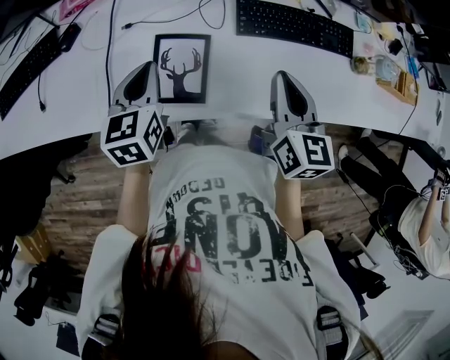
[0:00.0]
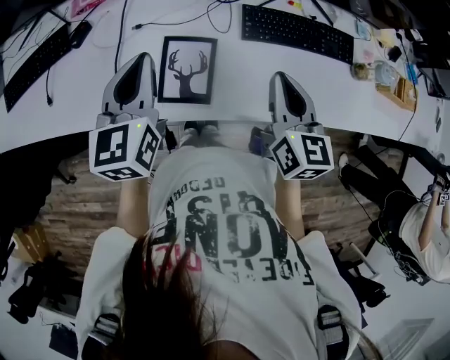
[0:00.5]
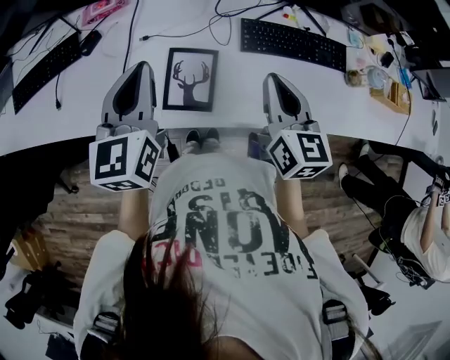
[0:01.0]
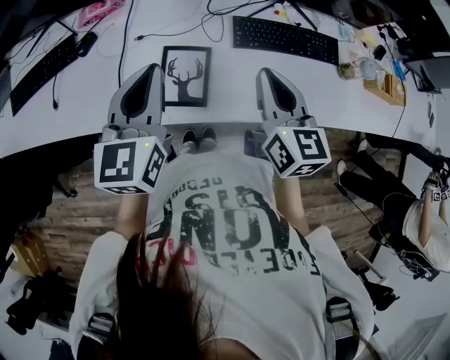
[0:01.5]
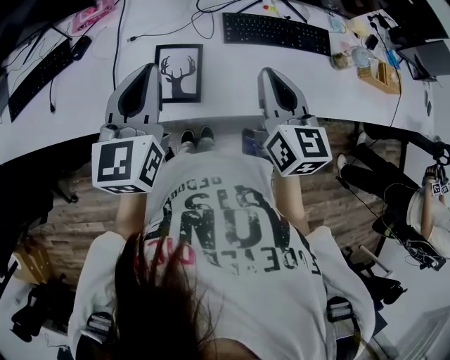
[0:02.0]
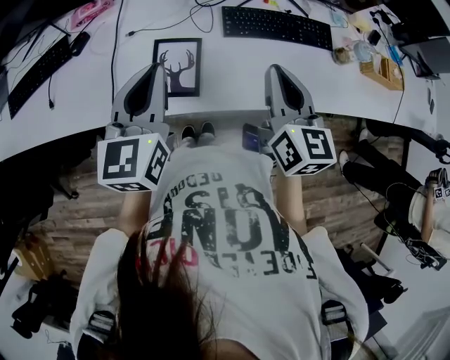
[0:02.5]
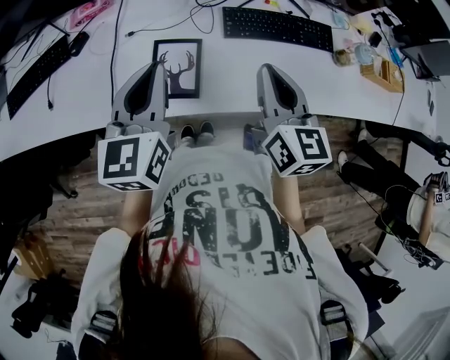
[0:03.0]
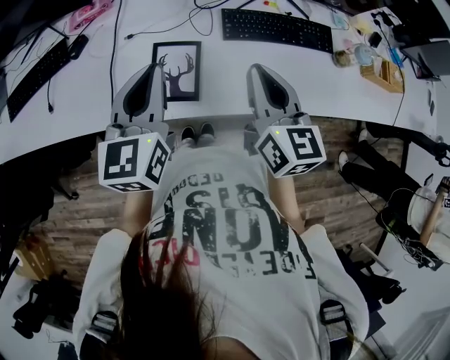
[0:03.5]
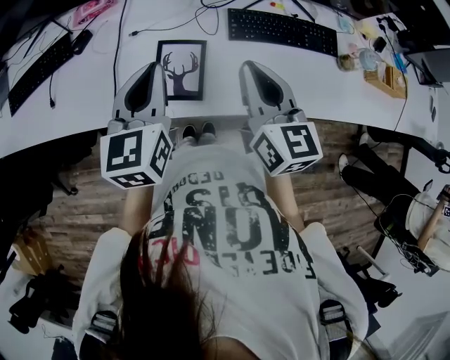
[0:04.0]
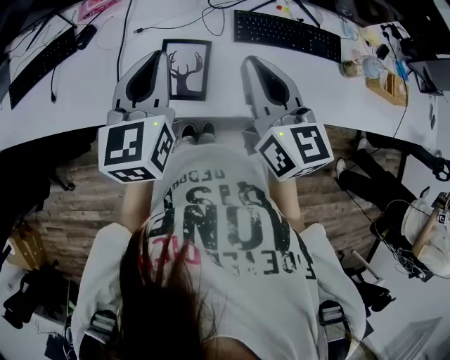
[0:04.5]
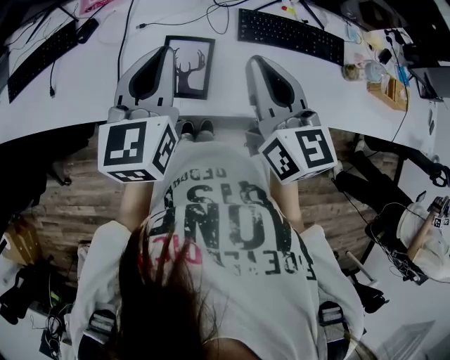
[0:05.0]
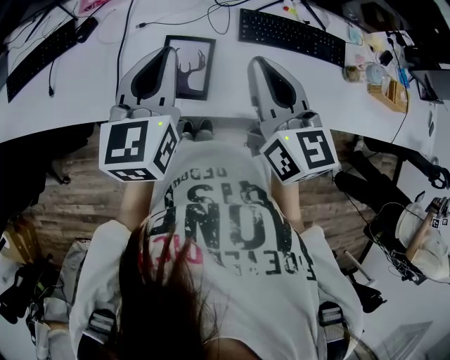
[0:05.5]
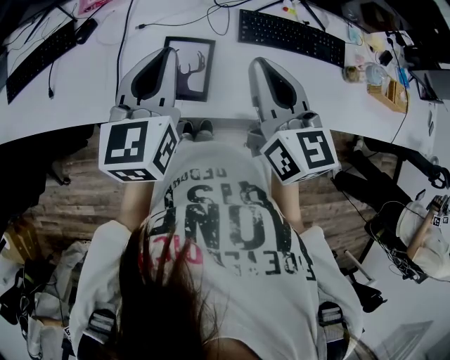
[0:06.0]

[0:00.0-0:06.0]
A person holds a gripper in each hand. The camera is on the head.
0:00.0 to 0:02.0: The left gripper moves upward and backward, about 15 cm, and changes its angle by roughly 20 degrees. Meanwhile the right gripper moves upward, some 5 cm.
0:02.0 to 0:04.0: The grippers move only a little.
0:04.0 to 0:06.0: There are only small adjustments of the grippers.

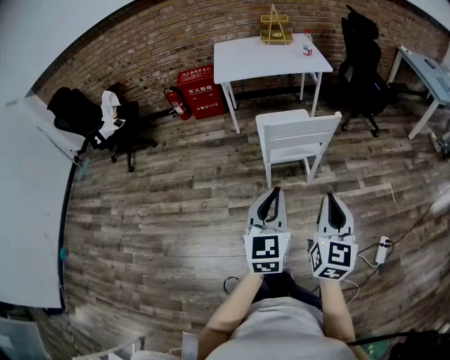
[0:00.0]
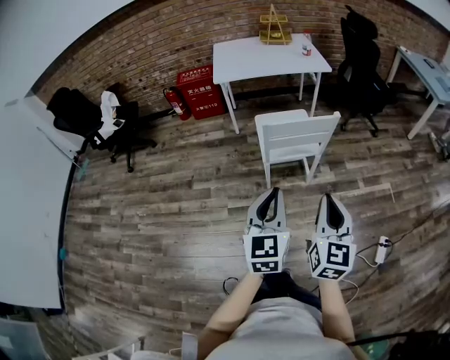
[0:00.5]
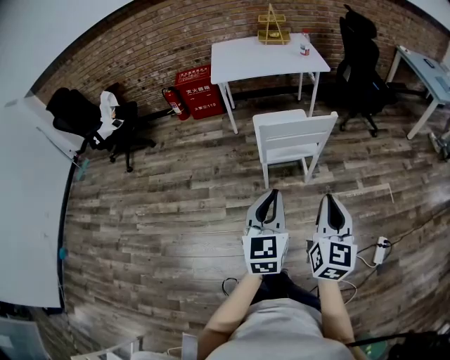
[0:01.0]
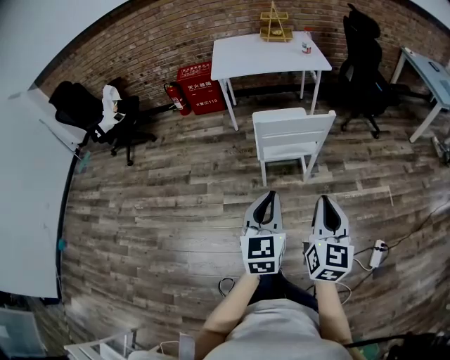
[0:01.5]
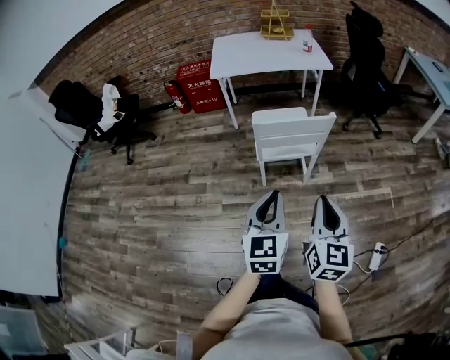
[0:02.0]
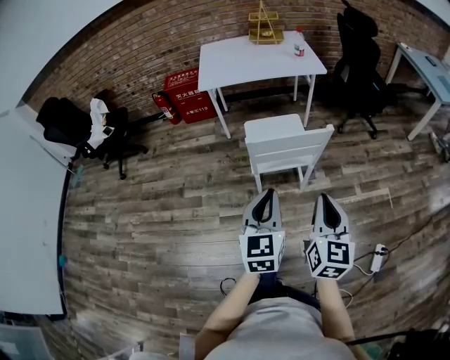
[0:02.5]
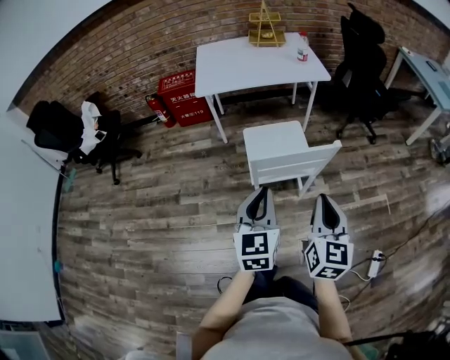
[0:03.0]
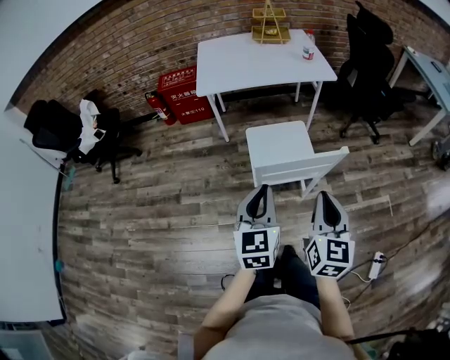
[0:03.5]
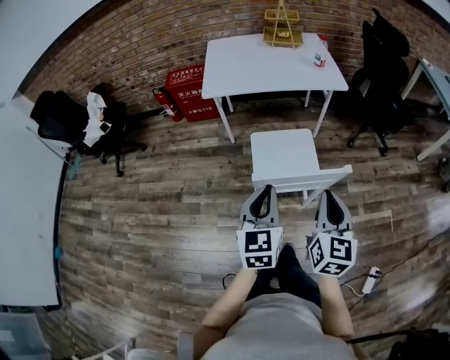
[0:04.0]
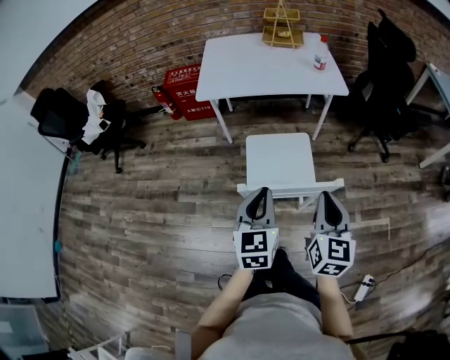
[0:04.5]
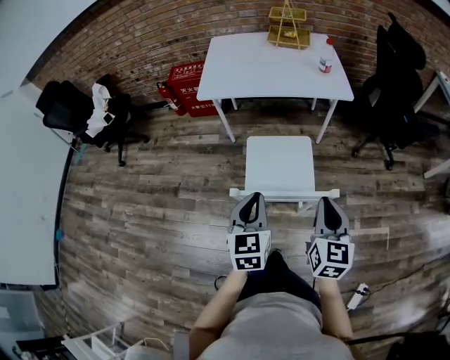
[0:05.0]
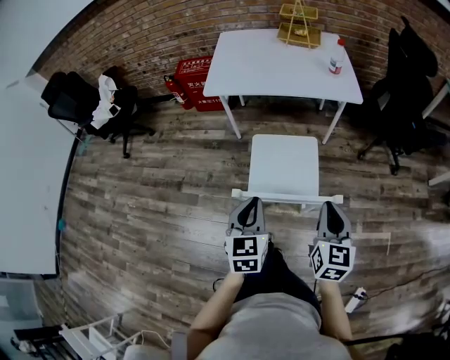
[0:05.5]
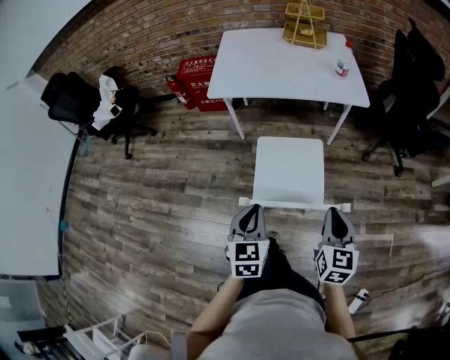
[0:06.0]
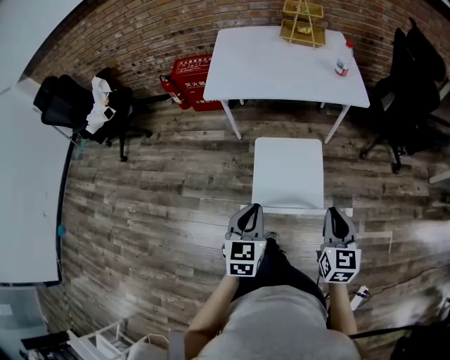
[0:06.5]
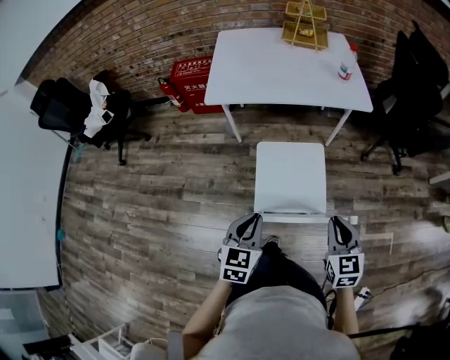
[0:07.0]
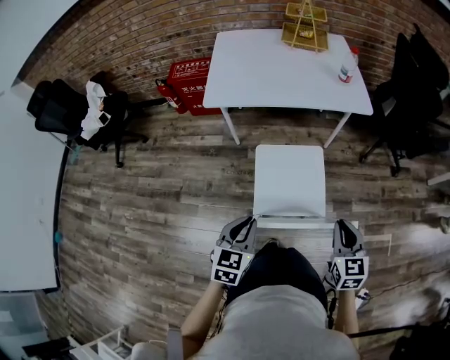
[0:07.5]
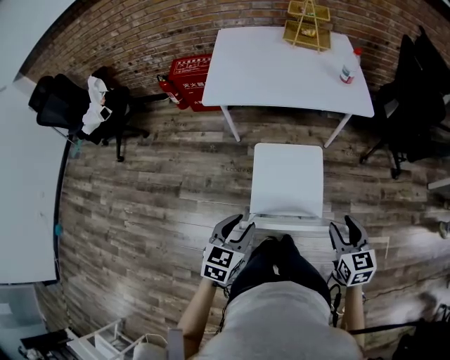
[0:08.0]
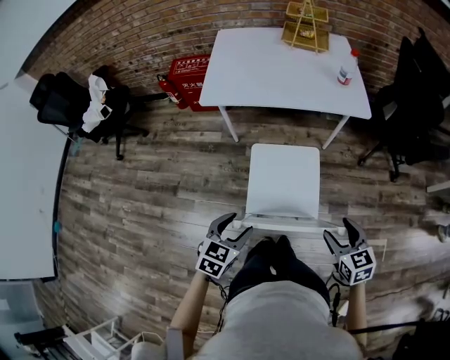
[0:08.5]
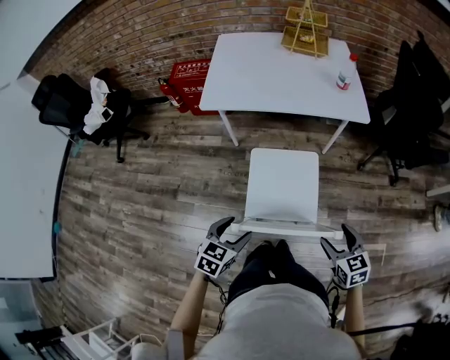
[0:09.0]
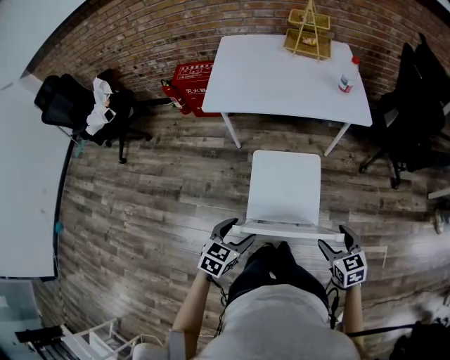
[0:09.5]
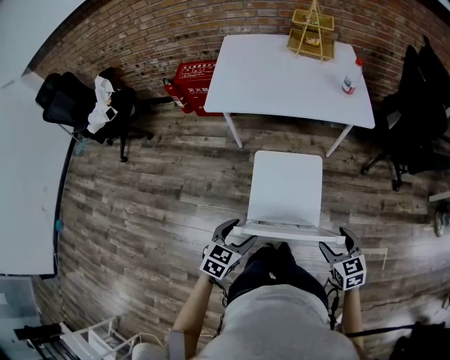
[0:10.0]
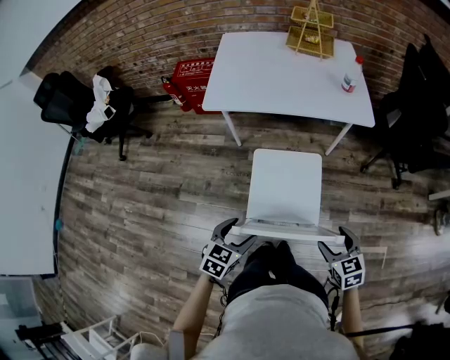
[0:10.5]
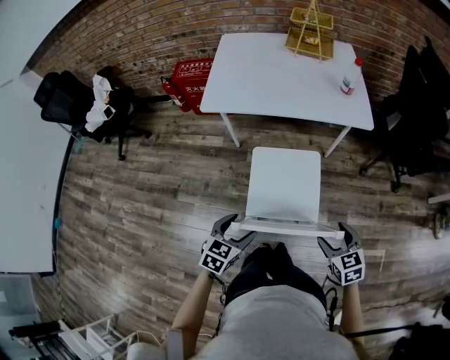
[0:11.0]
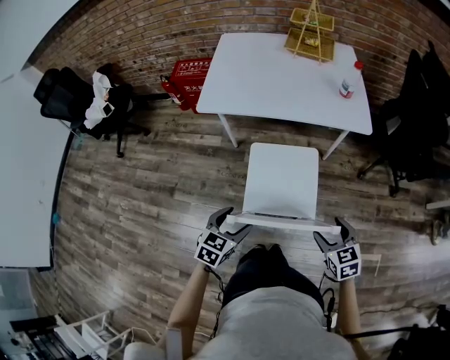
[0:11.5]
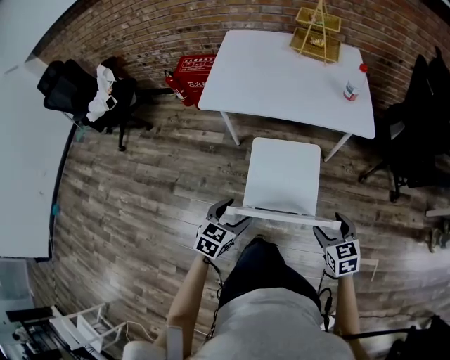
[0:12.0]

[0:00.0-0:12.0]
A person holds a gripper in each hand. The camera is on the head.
0:00.0 to 0:02.0: The right gripper shifts by about 5 cm. Meanwhile the left gripper is displaced to the right by approximately 5 cm.
0:02.0 to 0:04.0: Both grippers move forward, approximately 25 cm.
0:04.0 to 0:06.0: The right gripper travels forward, downward and to the right by some 15 cm; the left gripper moves downward and forward, about 10 cm.
0:06.0 to 0:08.0: The right gripper changes place by roughly 5 cm, and opens its fingers, while the left gripper shifts by some 5 cm, turns by approximately 20 degrees, and opens.
0:08.0 to 0:10.0: The grippers both shift downward by about 5 cm. The left gripper opens; the right gripper opens up.
0:10.0 to 0:12.0: The grippers both shift forward by roughly 10 cm.

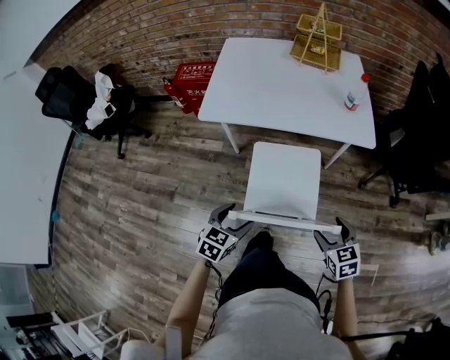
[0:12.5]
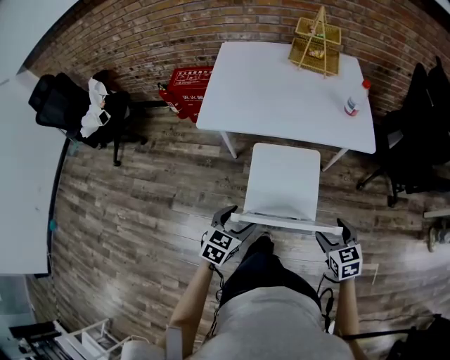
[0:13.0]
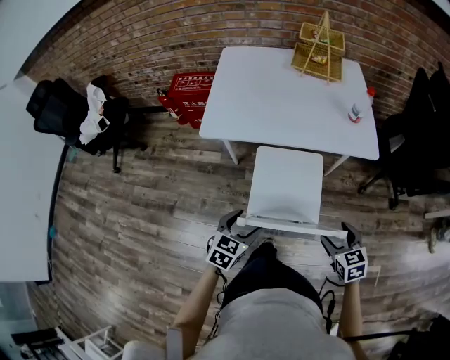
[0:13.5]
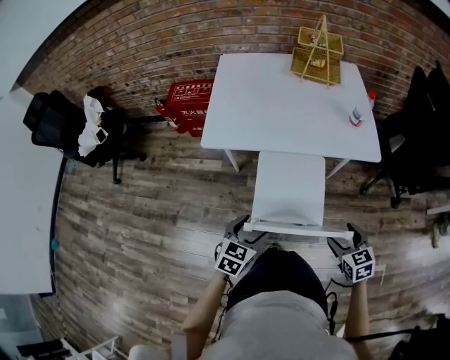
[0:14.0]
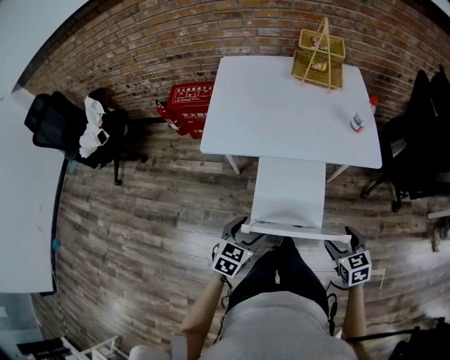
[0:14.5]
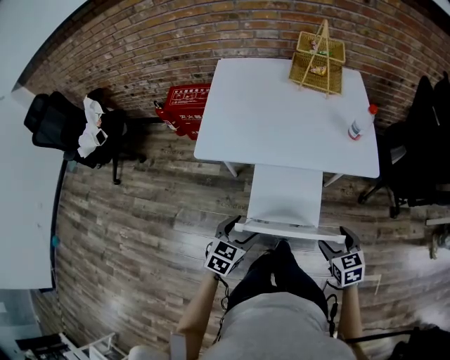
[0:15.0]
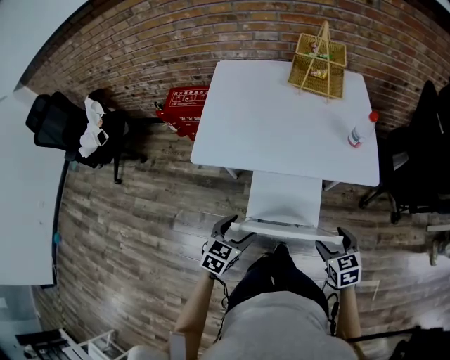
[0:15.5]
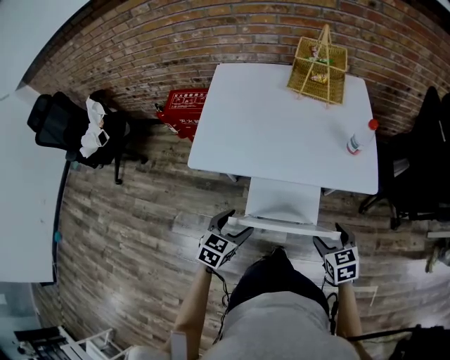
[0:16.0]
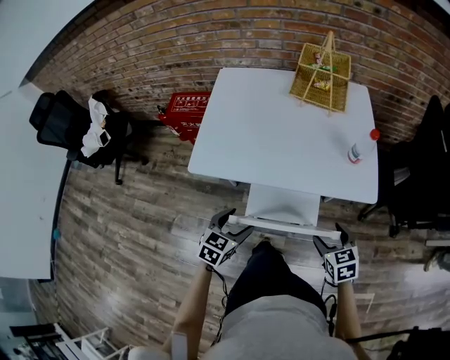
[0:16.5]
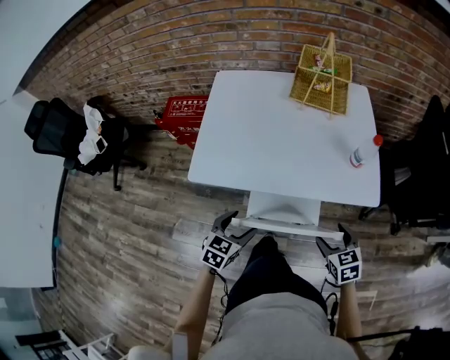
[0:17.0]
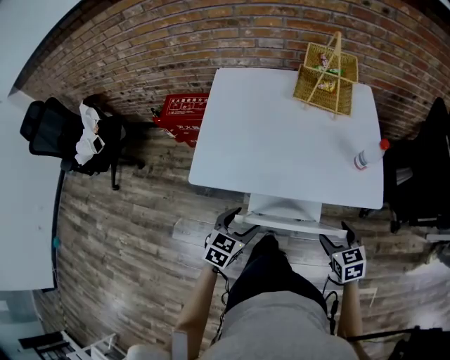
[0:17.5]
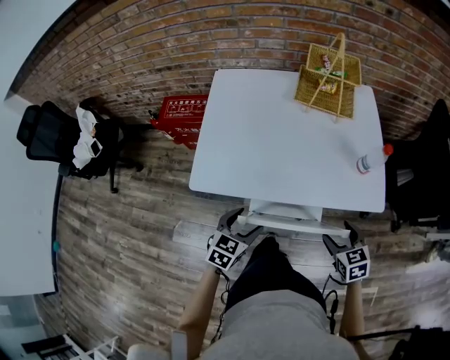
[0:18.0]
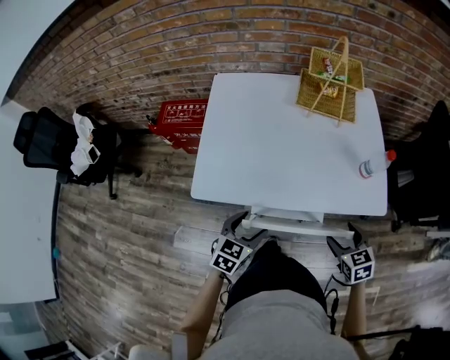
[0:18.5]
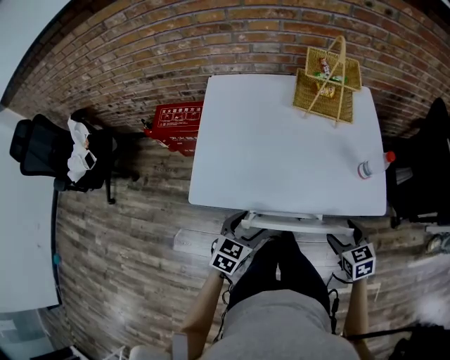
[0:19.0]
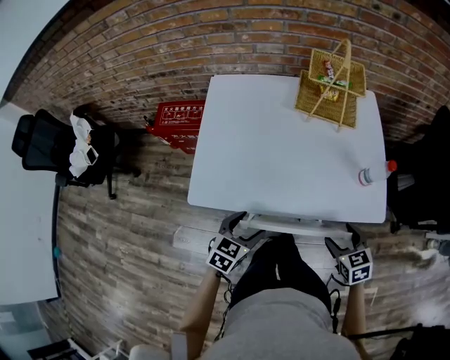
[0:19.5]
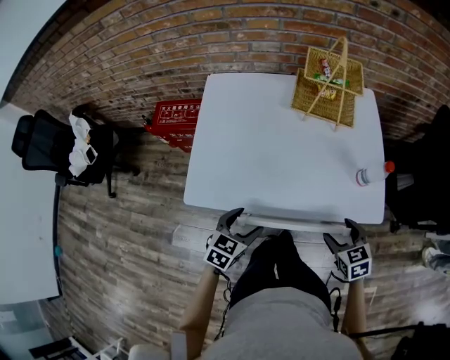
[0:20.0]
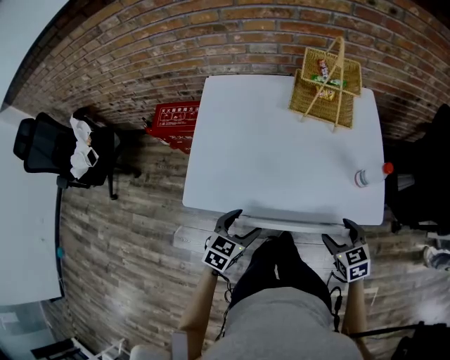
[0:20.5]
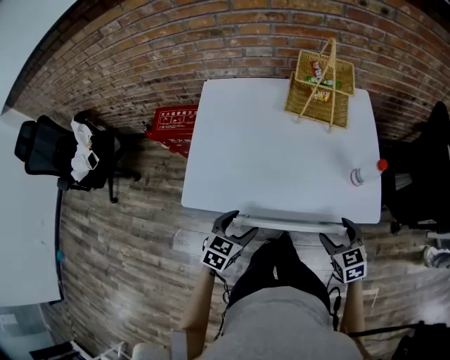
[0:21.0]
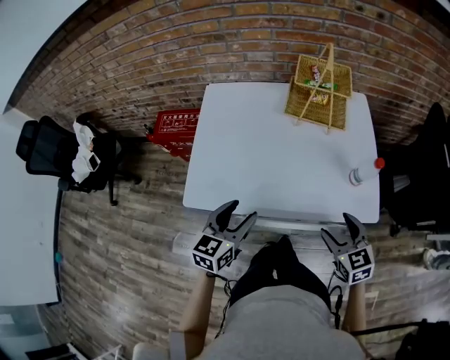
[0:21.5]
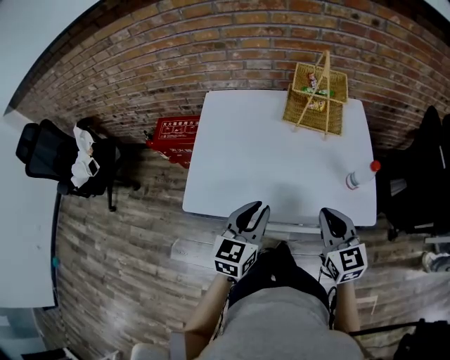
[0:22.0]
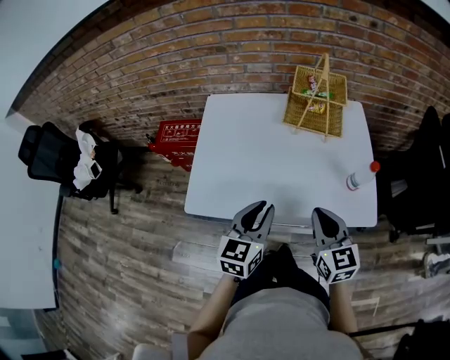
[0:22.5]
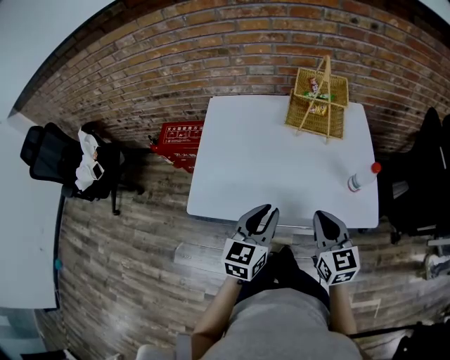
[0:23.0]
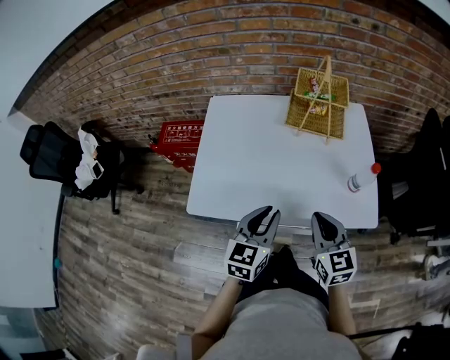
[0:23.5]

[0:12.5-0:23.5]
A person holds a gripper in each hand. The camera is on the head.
0:12.5 to 0:14.5: Both grippers travel together forward, approximately 10 cm.
0:14.5 to 0:16.0: The grippers both shift forward by roughly 10 cm.
0:16.0 to 0:18.0: The two grippers go some 10 cm forward.
0:18.0 to 0:20.0: The two grippers go some 5 cm forward.
0:20.0 to 0:21.5: The left gripper moves upward, approximately 10 cm, and swivels some 20 degrees. Meanwhile the right gripper travels upward by some 5 cm.
0:21.5 to 0:23.5: The left gripper shifts roughly 5 cm to the right, and closes its fingers; the right gripper travels to the left and upward by some 10 cm, and closes its fingers.
